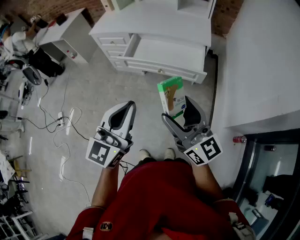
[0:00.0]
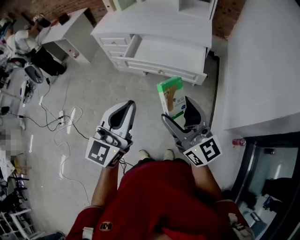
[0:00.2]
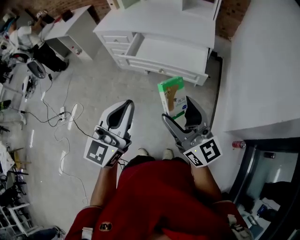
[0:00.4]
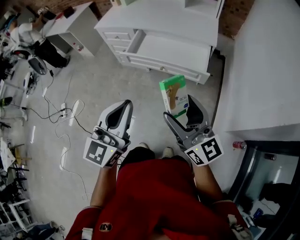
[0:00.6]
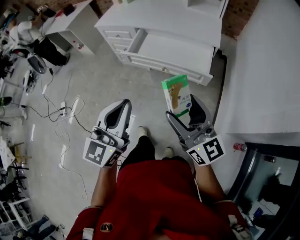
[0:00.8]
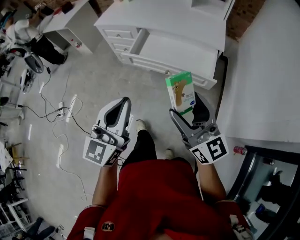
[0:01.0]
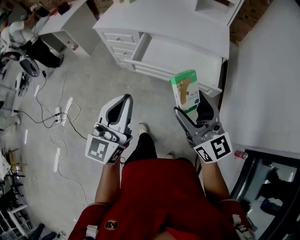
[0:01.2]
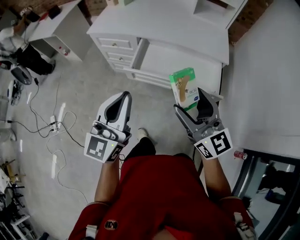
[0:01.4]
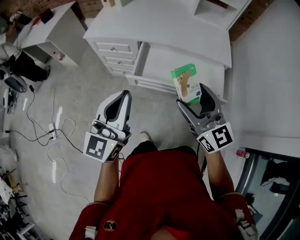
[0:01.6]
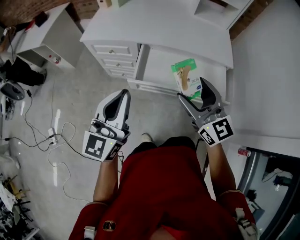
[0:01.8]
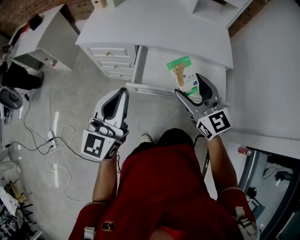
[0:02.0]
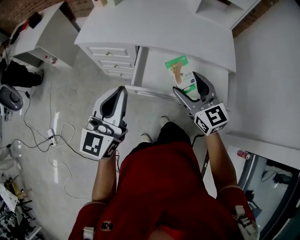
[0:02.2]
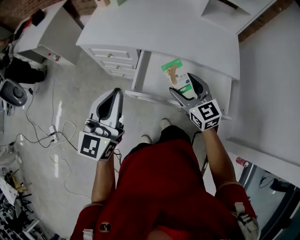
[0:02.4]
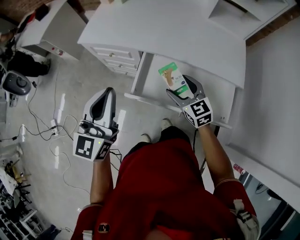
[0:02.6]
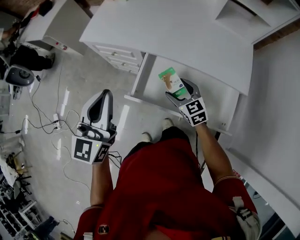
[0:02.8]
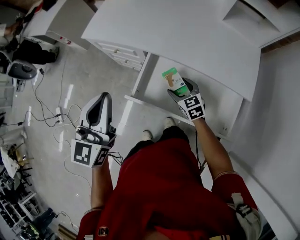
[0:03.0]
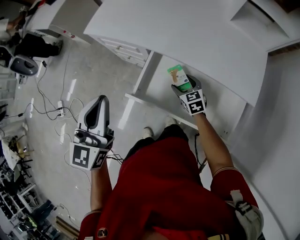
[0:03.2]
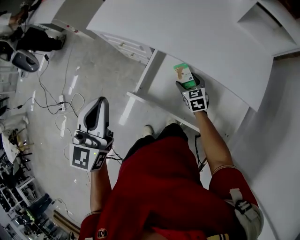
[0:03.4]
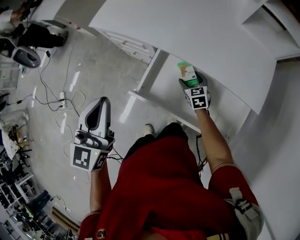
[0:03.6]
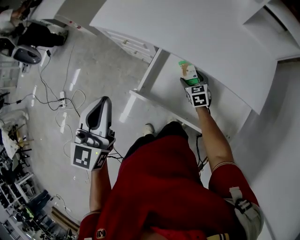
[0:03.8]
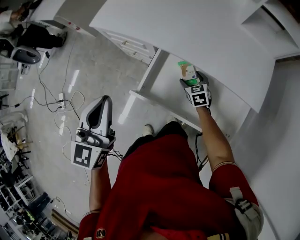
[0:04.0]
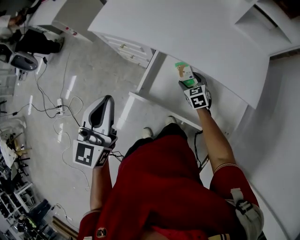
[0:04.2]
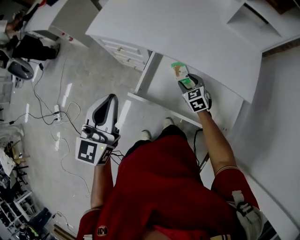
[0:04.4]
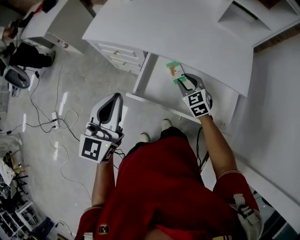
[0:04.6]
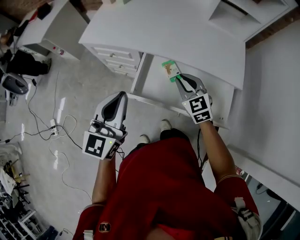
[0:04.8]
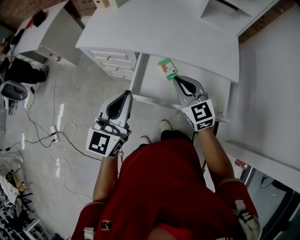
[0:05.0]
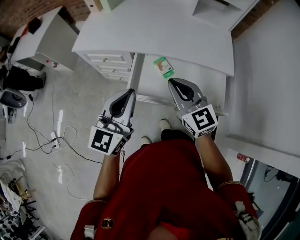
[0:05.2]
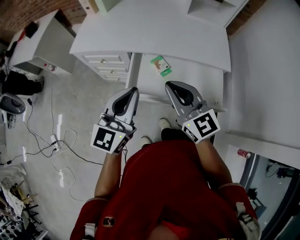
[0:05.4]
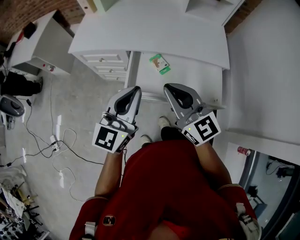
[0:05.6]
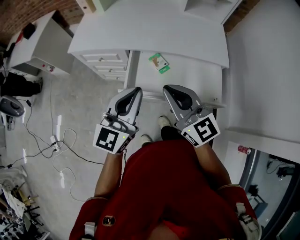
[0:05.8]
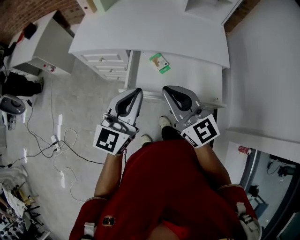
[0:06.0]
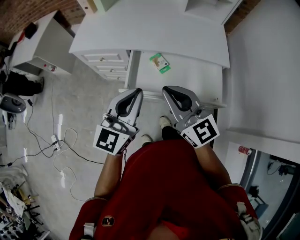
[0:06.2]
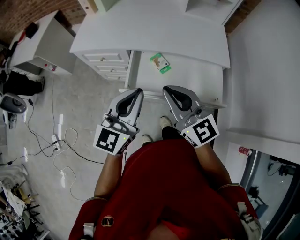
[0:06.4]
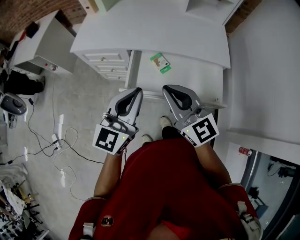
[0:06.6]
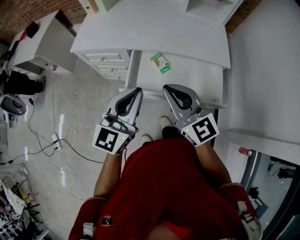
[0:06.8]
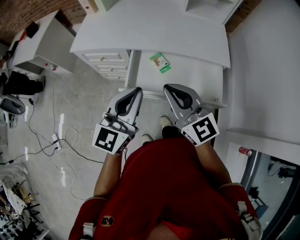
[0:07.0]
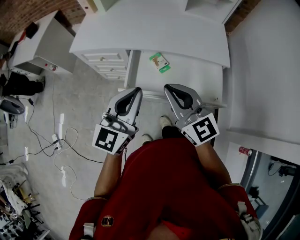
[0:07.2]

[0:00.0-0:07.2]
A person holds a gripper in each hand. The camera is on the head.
0.0 to 1.4 s: The left gripper goes approximately 25 cm forward and to the left; the right gripper heads forward, covering some 20 cm.
1.4 to 2.8 s: The right gripper moves forward and downward, about 40 cm, and tips its fingers downward by approximately 30 degrees. Meanwhile the left gripper goes some 25 cm forward.
2.8 to 4.4 s: The right gripper goes some 5 cm downward.
4.4 to 5.8 s: The left gripper moves to the right and backward, about 10 cm, and rotates roughly 30 degrees, while the right gripper shifts about 35 cm upward and backward, points its fingers approximately 40 degrees further upward, and closes.
5.8 to 7.2 s: The two grippers keep their place.

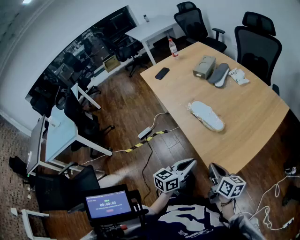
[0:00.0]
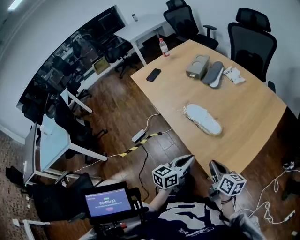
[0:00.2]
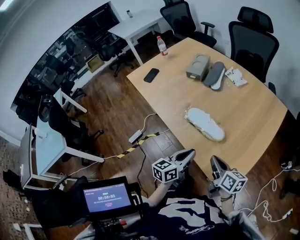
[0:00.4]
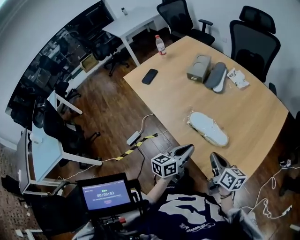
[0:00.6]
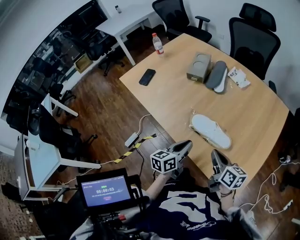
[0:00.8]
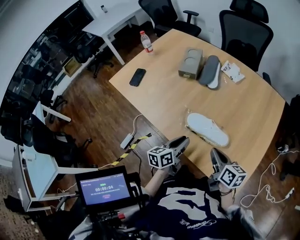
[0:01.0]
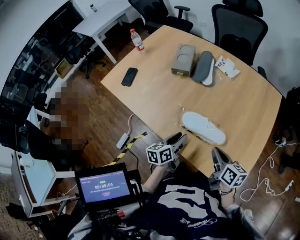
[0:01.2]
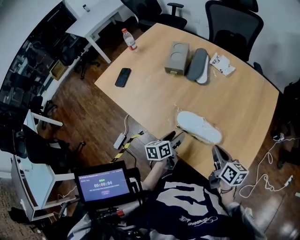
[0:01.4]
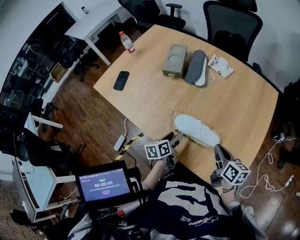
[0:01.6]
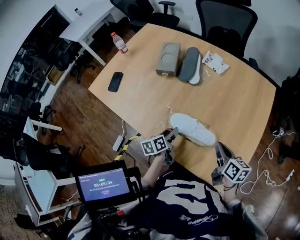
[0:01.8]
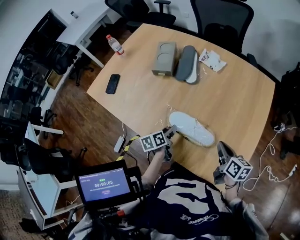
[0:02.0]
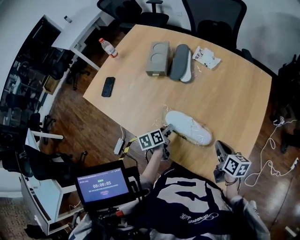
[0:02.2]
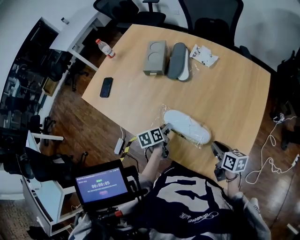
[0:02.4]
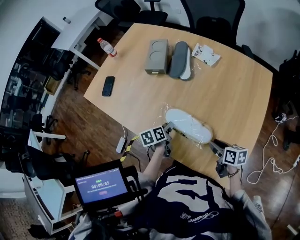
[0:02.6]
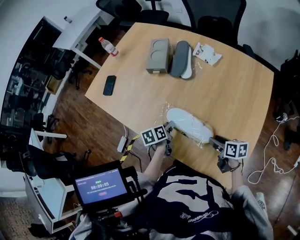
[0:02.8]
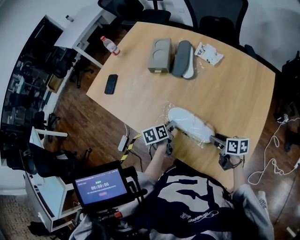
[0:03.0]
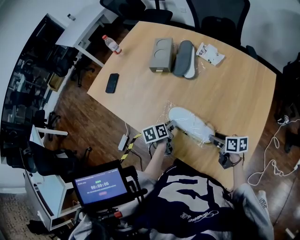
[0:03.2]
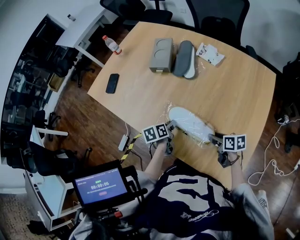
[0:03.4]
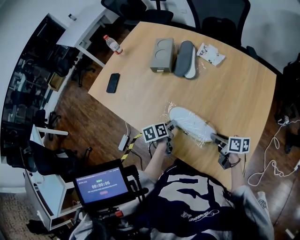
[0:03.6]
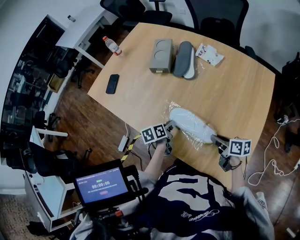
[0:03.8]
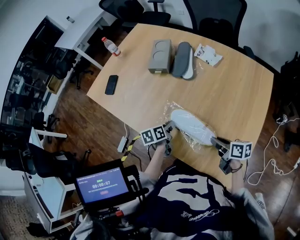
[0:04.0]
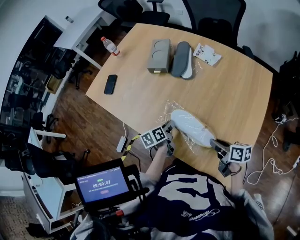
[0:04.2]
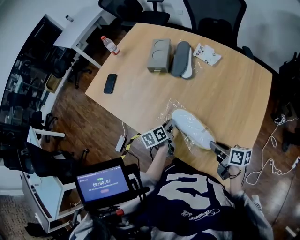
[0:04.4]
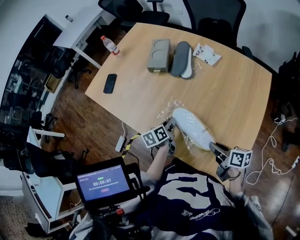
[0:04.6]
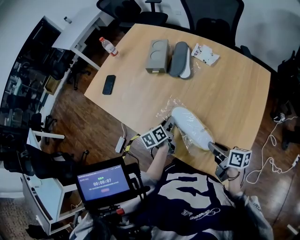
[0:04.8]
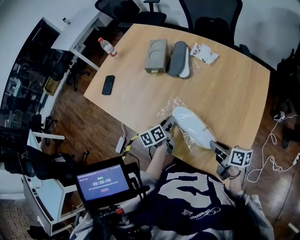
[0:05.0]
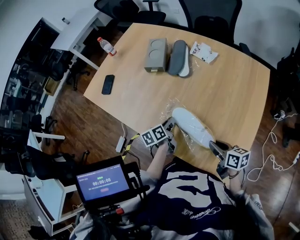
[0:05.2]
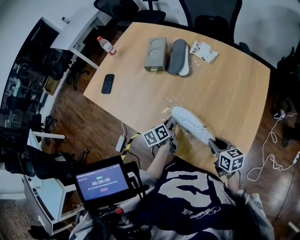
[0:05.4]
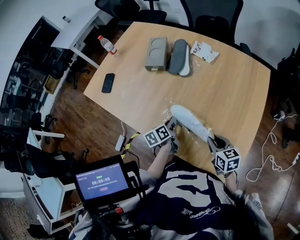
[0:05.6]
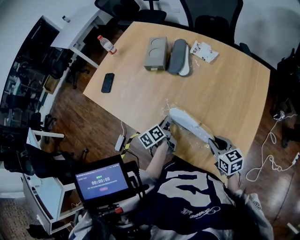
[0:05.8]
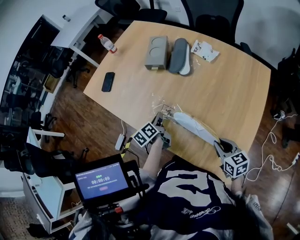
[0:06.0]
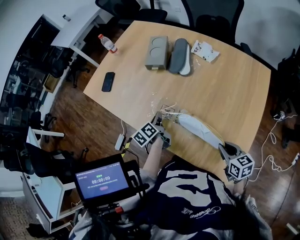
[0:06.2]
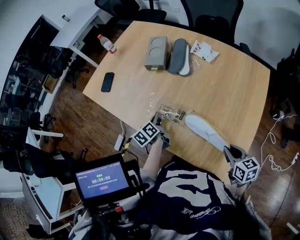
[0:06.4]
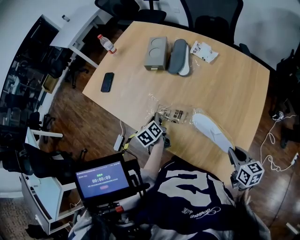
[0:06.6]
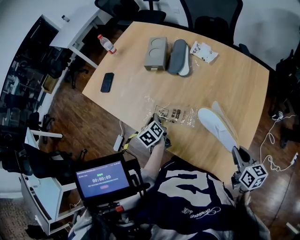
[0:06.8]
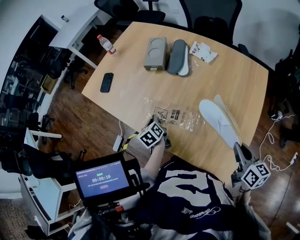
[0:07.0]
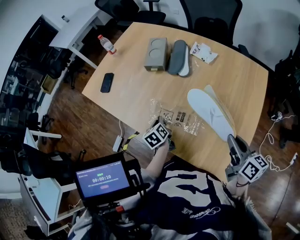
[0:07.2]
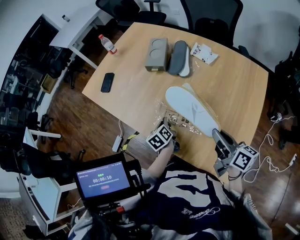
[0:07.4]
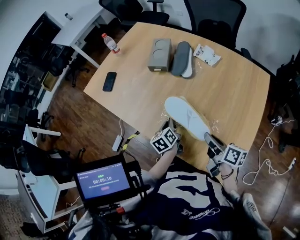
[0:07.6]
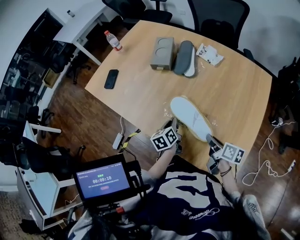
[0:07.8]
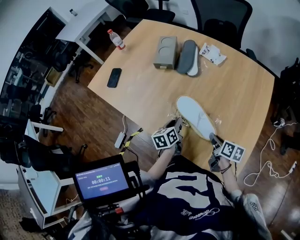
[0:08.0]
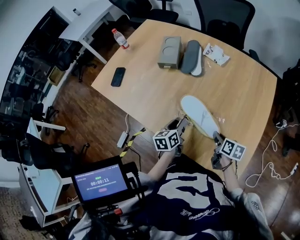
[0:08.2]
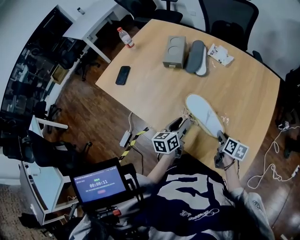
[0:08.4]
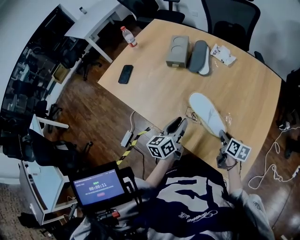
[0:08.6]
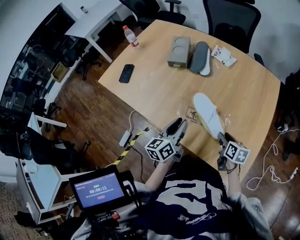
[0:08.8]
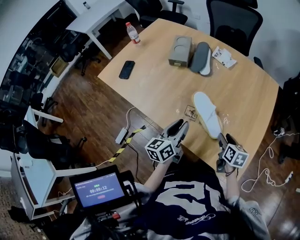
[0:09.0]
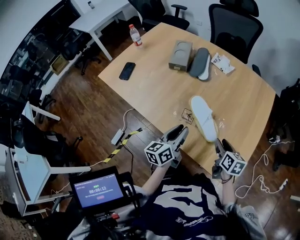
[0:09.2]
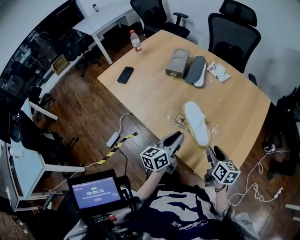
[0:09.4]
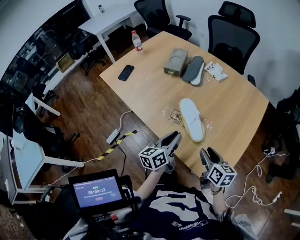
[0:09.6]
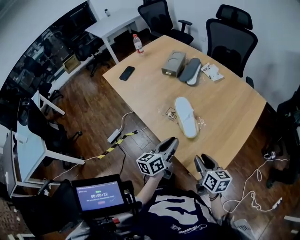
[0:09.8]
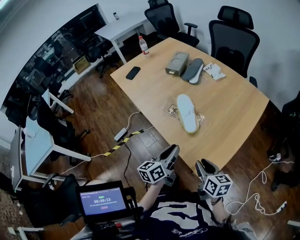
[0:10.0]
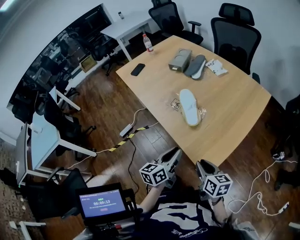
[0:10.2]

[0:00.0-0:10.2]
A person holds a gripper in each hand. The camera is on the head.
0.0 to 1.4 s: The left gripper travels forward and to the left by some 35 cm, changes its angle by roughly 20 degrees, and opens up. Meanwhile the right gripper shifts some 20 cm forward, and swivels about 20 degrees.
1.4 to 3.0 s: The left gripper travels forward by approximately 5 cm, and closes up, while the right gripper shifts approximately 10 cm downward and to the right, turns by roughly 20 degrees, and opens its fingers.
3.0 to 4.4 s: The right gripper is displaced upward by approximately 5 cm, and closes.
4.4 to 5.8 s: The right gripper swivels about 40 degrees.
5.8 to 7.2 s: The right gripper moves upward and to the right, roughly 15 cm, and changes its angle by about 30 degrees. Meanwhile the left gripper swivels about 20 degrees.
7.2 to 8.8 s: The left gripper moves upward and backward, roughly 15 cm, angles its fingers upward, by approximately 30 degrees, and opens up. Meanwhile the right gripper heads downward and to the left, covering roughly 20 cm, swivels some 20 degrees, and opens up.
8.8 to 10.2 s: The right gripper goes roughly 25 cm backward, swivels some 30 degrees, and closes its fingers; the left gripper travels backward and to the right by some 30 cm.

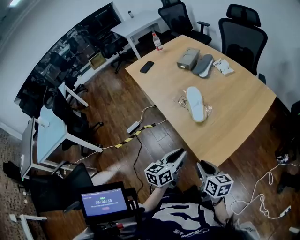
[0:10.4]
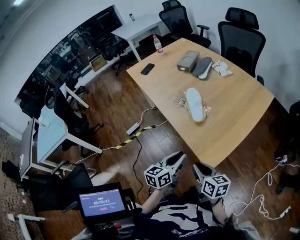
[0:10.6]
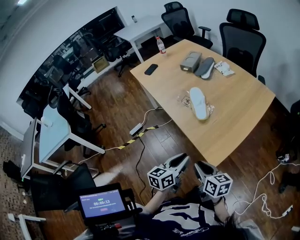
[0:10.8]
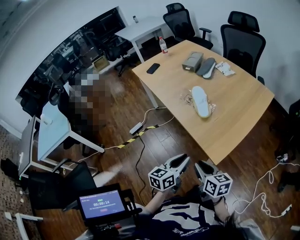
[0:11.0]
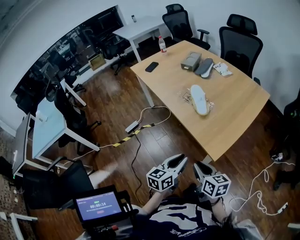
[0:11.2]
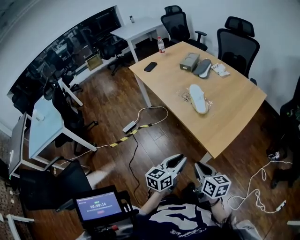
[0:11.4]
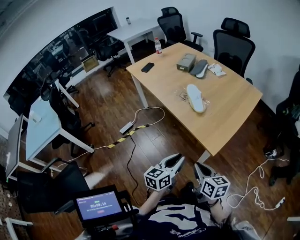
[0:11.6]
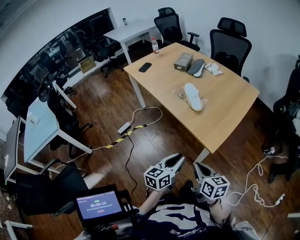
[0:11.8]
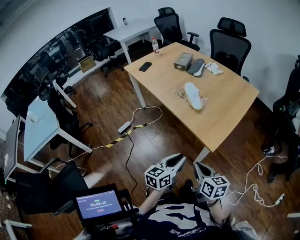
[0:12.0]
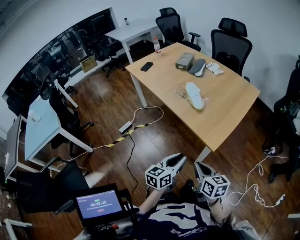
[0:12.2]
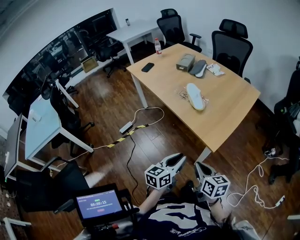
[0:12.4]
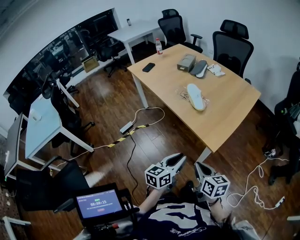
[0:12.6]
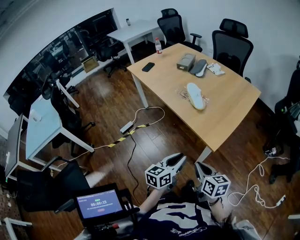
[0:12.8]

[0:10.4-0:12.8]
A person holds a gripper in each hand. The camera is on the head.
10.4 to 11.6 s: Both grippers move backward and to the left, about 15 cm.
11.6 to 12.8 s: The grippers make only small movements.

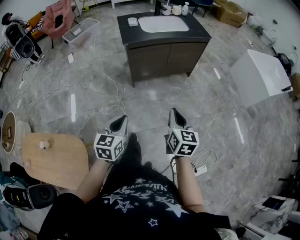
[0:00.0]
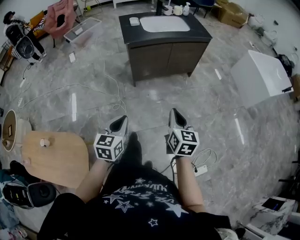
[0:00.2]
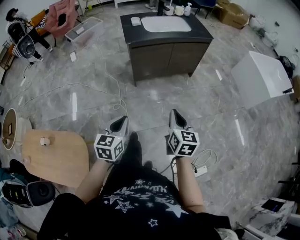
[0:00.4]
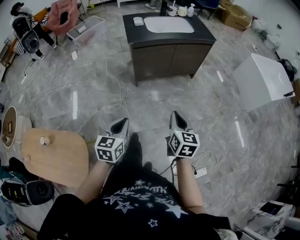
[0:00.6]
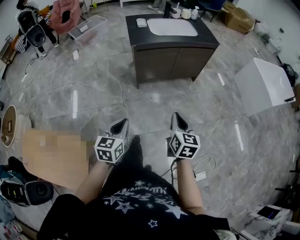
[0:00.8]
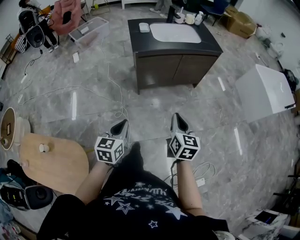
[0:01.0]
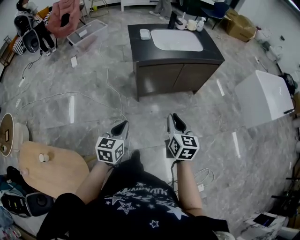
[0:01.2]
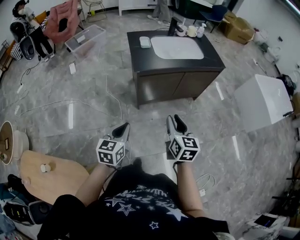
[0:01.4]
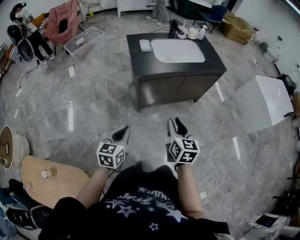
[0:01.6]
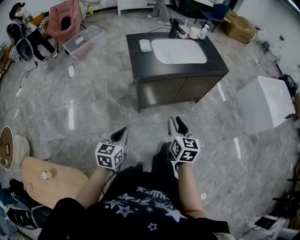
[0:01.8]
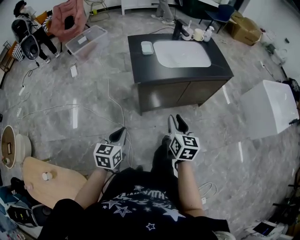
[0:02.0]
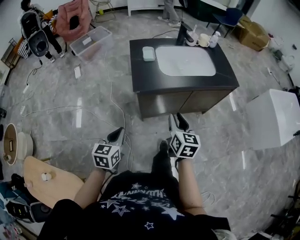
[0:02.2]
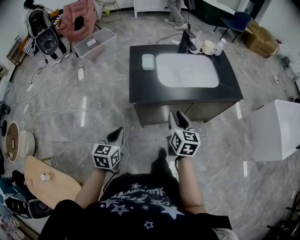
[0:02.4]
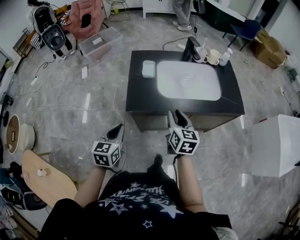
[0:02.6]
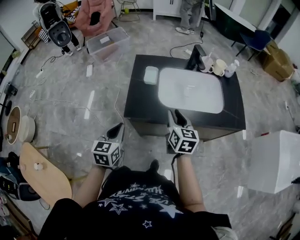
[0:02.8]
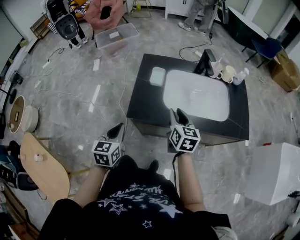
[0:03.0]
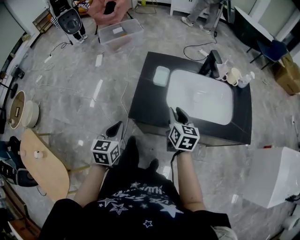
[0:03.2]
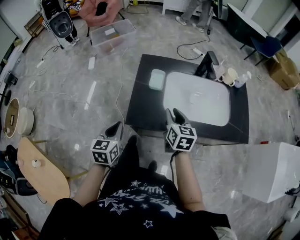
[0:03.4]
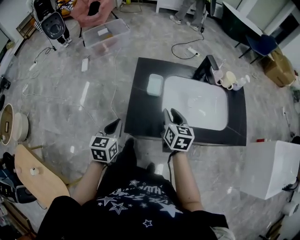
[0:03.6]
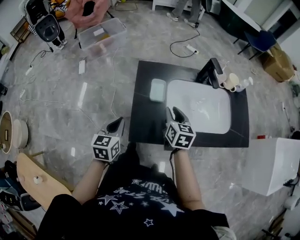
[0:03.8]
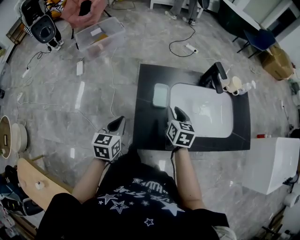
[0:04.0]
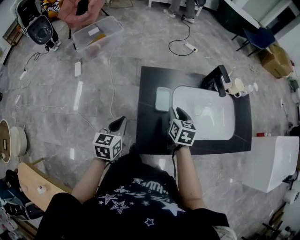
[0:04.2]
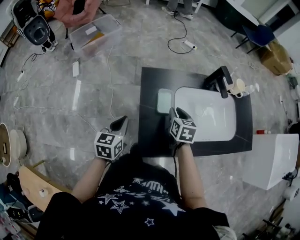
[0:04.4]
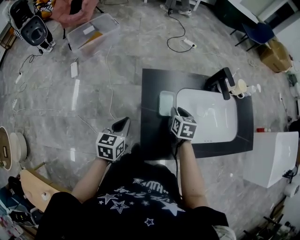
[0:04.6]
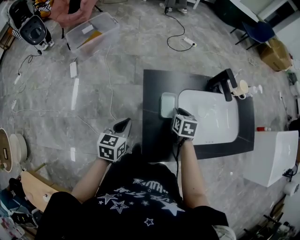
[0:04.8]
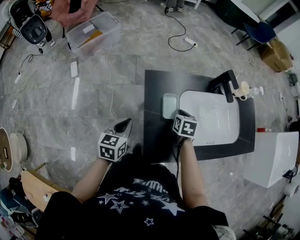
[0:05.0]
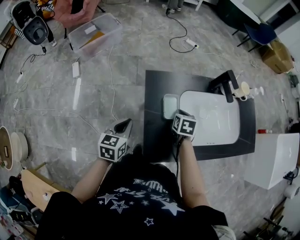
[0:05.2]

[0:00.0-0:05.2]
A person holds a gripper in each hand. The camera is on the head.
0.0 to 1.8 s: Both grippers move forward and to the left, about 30 cm. The right gripper opens its fingers.
1.8 to 3.4 s: The right gripper moves about 40 cm, and turns by some 20 degrees, while the left gripper moves roughly 35 cm, and changes its angle by some 30 degrees.
3.4 to 5.2 s: The right gripper shifts about 20 cm forward and downward, rotates about 30 degrees, and closes its fingers. The left gripper moves forward and to the left, about 25 cm.
